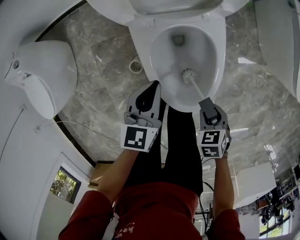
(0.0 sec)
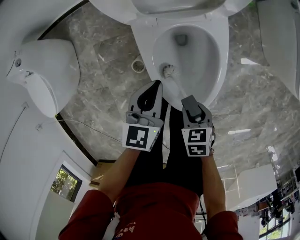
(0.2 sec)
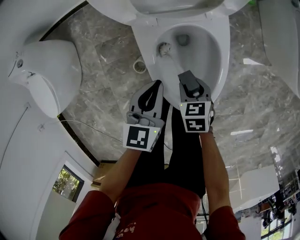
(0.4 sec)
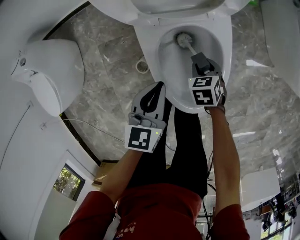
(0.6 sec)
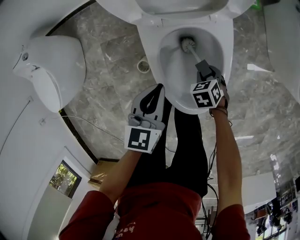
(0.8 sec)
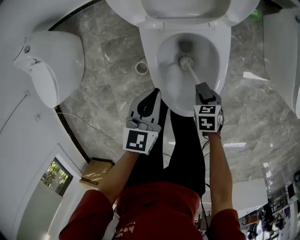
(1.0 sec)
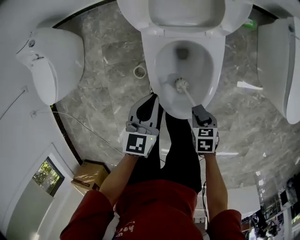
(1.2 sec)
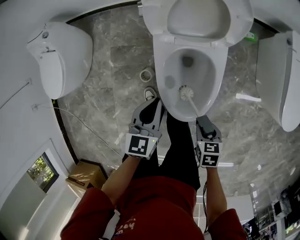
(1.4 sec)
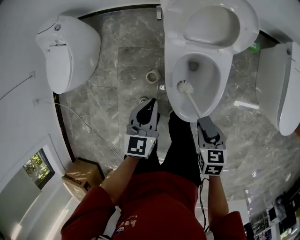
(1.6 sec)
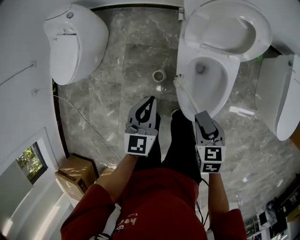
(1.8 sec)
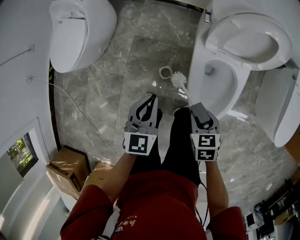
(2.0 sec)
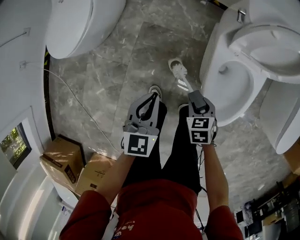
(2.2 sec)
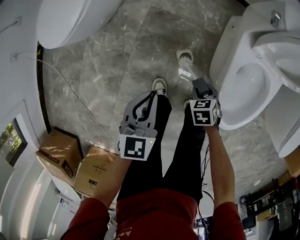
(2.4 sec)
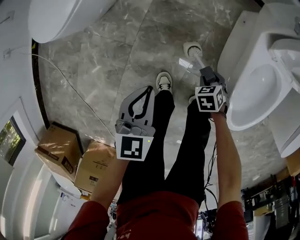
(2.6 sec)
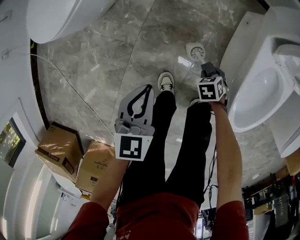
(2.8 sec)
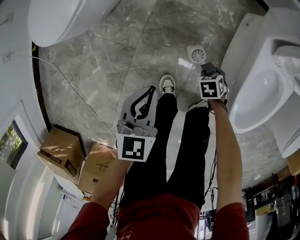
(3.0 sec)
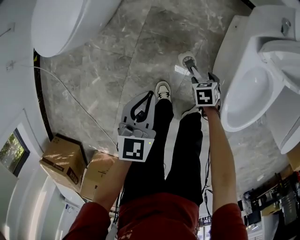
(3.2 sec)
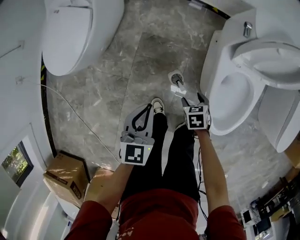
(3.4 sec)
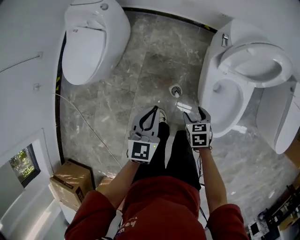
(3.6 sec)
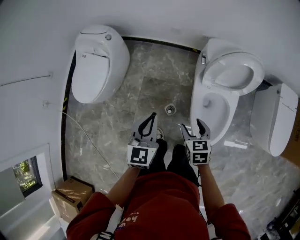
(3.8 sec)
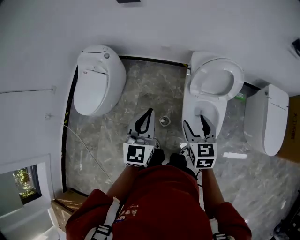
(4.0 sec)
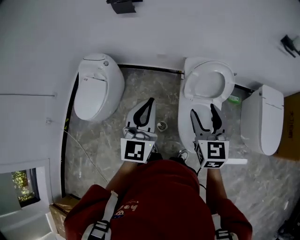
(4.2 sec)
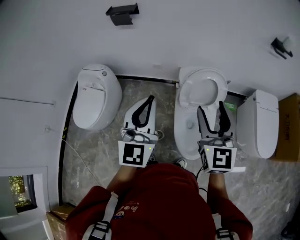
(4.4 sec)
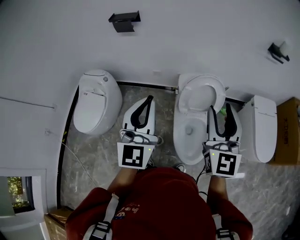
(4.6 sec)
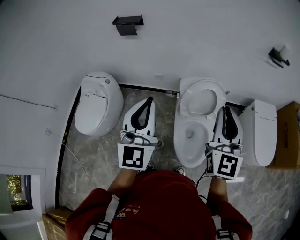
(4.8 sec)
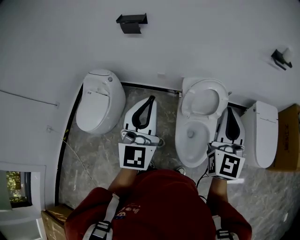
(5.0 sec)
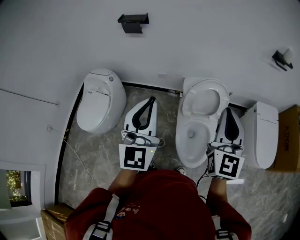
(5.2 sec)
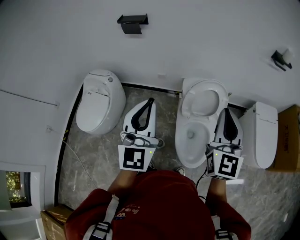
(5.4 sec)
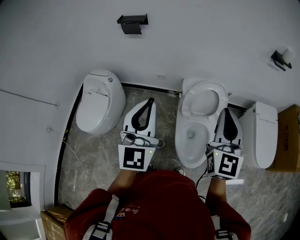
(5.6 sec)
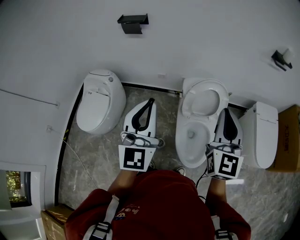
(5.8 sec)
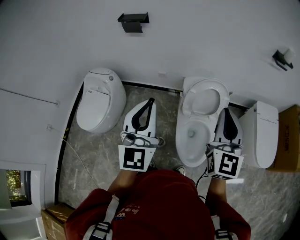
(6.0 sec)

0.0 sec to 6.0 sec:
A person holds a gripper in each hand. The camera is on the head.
0.0 sec to 1.6 sec: Both grippers travel together upward, some 15 cm.
1.6 sec to 3.0 sec: The left gripper shifts by approximately 40 cm; the right gripper moves downward, roughly 35 cm, and rotates roughly 40 degrees.
3.0 sec to 4.4 sec: Both grippers travel together upward, about 70 cm. The left gripper angles its fingers upward, by about 50 degrees. The right gripper tilts its fingers roughly 80 degrees upward, and opens.
4.4 sec to 6.0 sec: The right gripper shifts by about 5 cm, and closes its fingers.

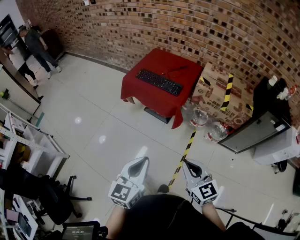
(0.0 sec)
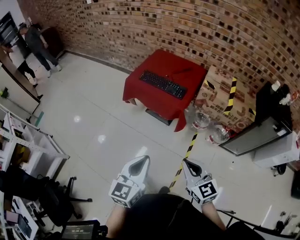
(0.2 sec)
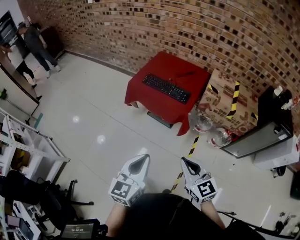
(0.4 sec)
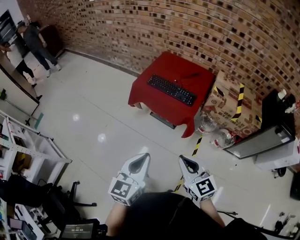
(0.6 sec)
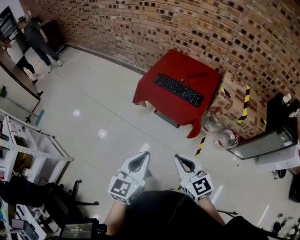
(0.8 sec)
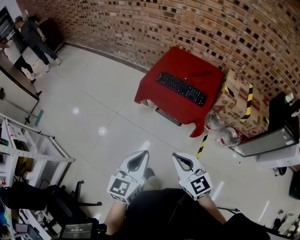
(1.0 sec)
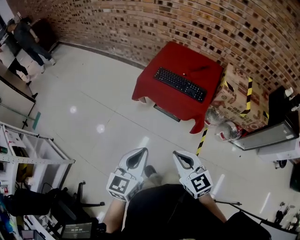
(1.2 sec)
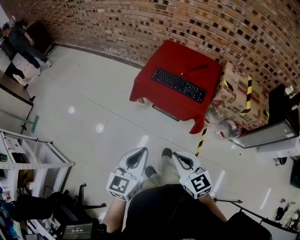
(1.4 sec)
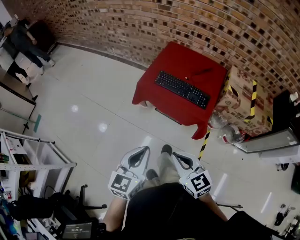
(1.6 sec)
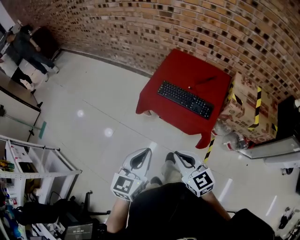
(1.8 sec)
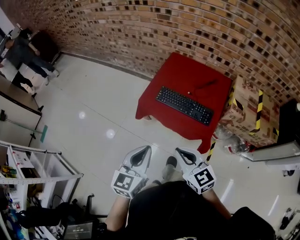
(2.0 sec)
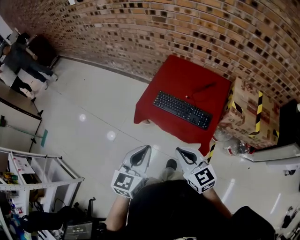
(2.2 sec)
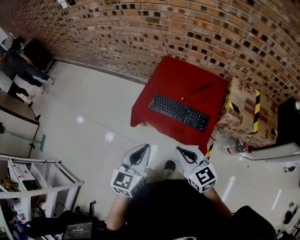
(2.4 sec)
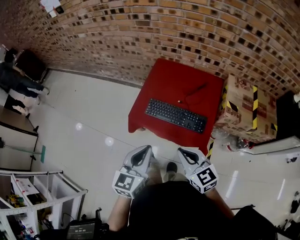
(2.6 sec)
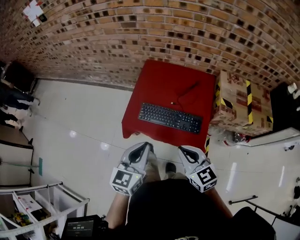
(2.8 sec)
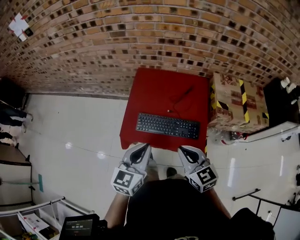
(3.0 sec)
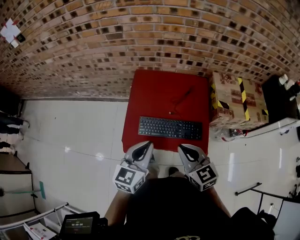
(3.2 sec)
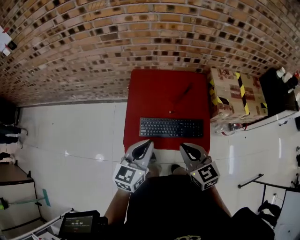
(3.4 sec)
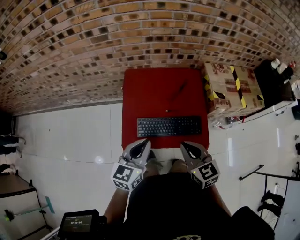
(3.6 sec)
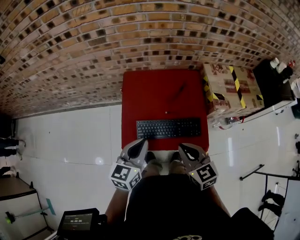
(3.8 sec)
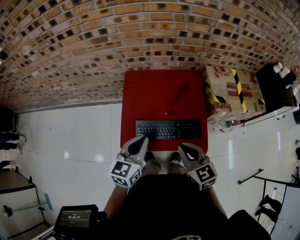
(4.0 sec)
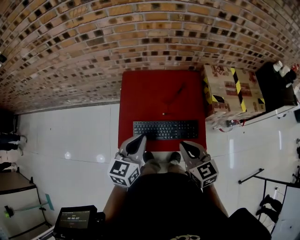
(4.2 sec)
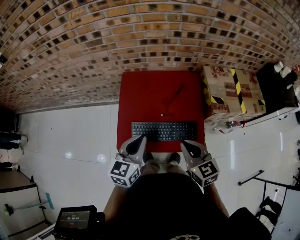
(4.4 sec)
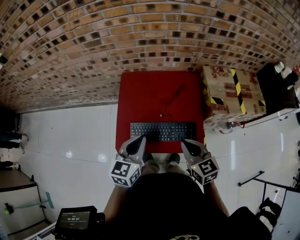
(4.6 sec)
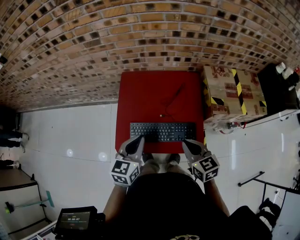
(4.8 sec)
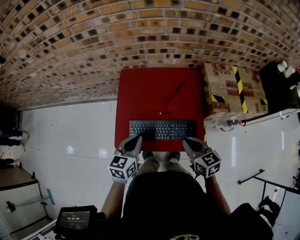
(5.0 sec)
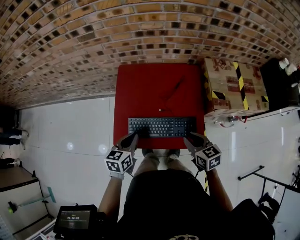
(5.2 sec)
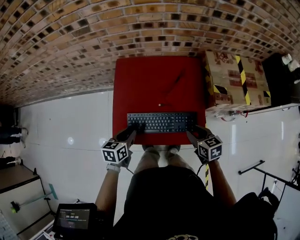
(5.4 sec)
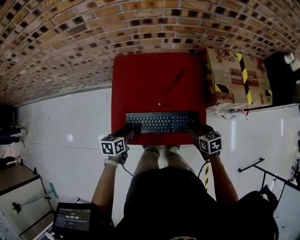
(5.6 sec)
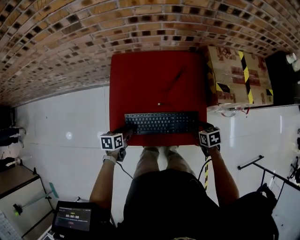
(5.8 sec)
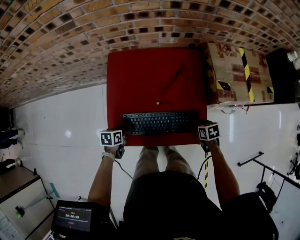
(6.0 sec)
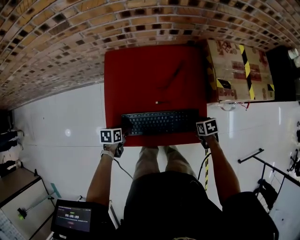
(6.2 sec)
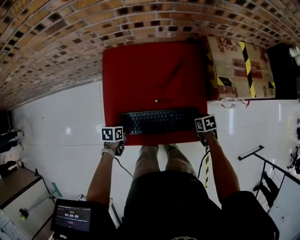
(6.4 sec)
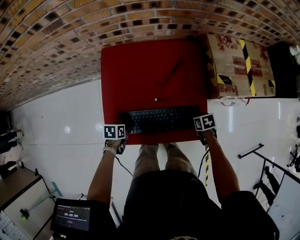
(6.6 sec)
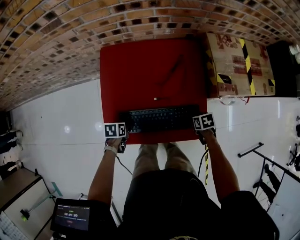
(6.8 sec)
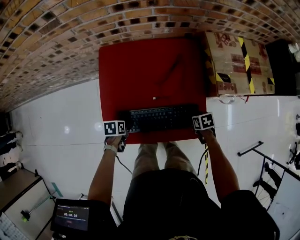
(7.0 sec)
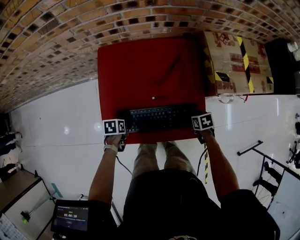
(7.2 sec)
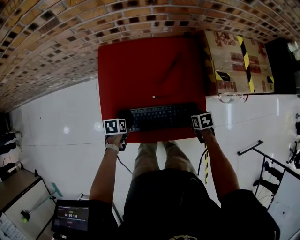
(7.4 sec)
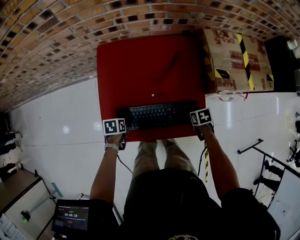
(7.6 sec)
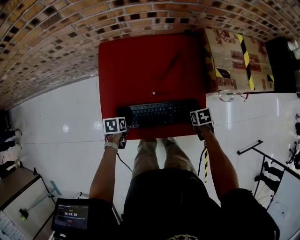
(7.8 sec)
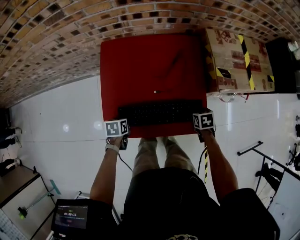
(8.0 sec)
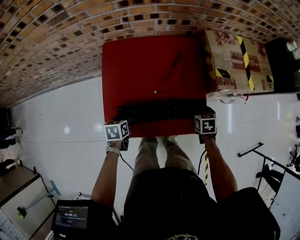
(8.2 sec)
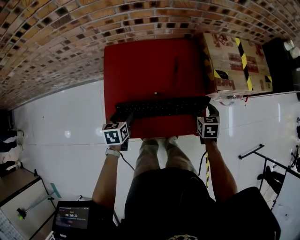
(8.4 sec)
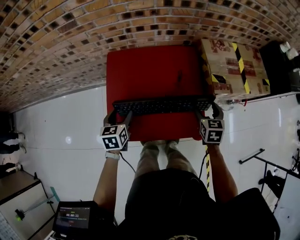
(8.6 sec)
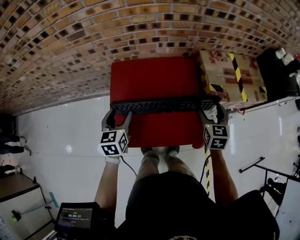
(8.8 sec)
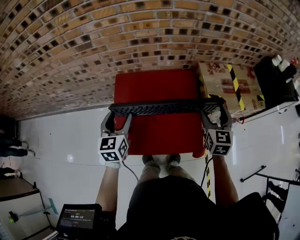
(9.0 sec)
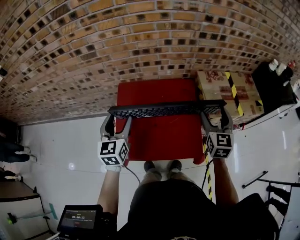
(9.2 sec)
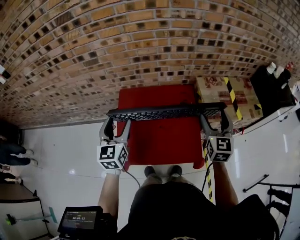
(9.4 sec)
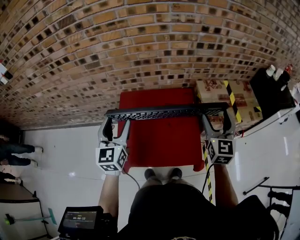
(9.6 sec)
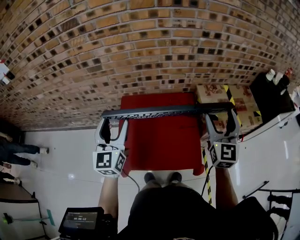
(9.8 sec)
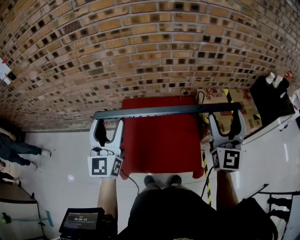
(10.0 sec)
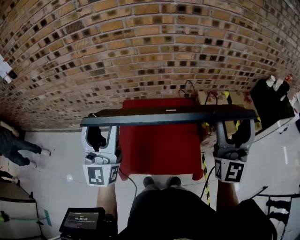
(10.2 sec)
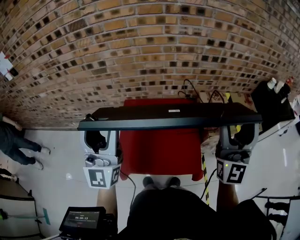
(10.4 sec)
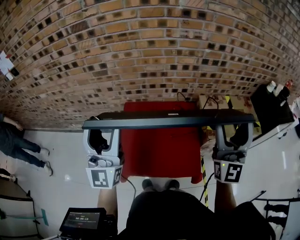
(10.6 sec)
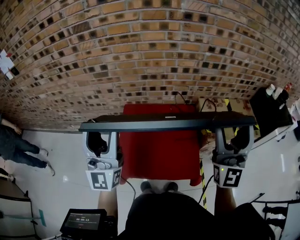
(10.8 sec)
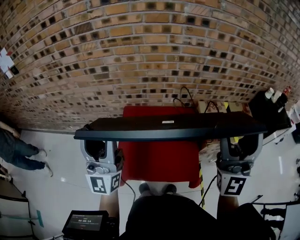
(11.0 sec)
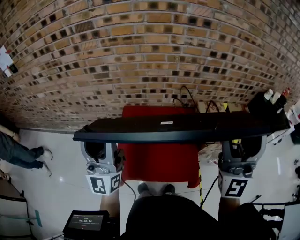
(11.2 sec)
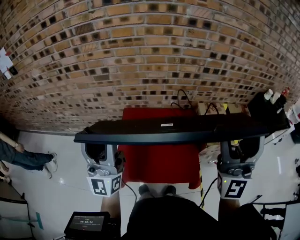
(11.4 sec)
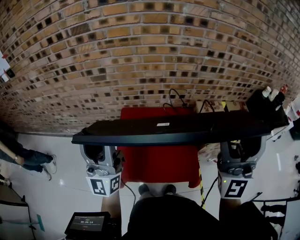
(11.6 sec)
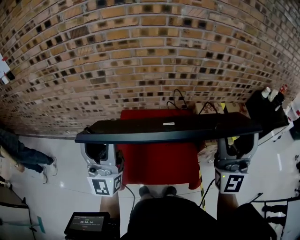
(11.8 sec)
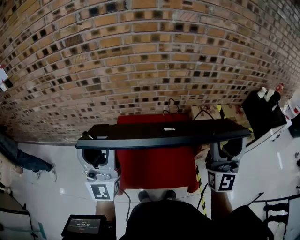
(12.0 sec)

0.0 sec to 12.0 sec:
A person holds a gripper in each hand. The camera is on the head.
0.0 sec to 1.6 sec: Both grippers travel together forward and to the left, approximately 35 cm.
1.6 sec to 3.0 sec: Both grippers travel together forward, roughly 30 cm. The left gripper swivels approximately 20 degrees; the right gripper changes its angle by some 20 degrees.
3.0 sec to 4.4 sec: Both grippers move forward, approximately 10 cm.
4.4 sec to 6.0 sec: The left gripper heads downward, covering roughly 30 cm, angles its fingers downward, by roughly 40 degrees, and opens its fingers; the right gripper moves downward and to the right, some 35 cm, tilts its fingers roughly 40 degrees downward, and opens up.
6.0 sec to 7.6 sec: The grippers make only small movements.
7.6 sec to 9.0 sec: Both grippers travel together upward, roughly 35 cm. The left gripper tilts its fingers approximately 50 degrees upward, while the right gripper points its fingers approximately 50 degrees further upward.
9.0 sec to 10.4 sec: Both grippers travel together upward, about 30 cm. The right gripper tilts its fingers approximately 50 degrees upward. Meanwhile the left gripper points its fingers roughly 50 degrees further upward.
10.4 sec to 12.0 sec: The right gripper reaches some 5 cm upward, then returns.

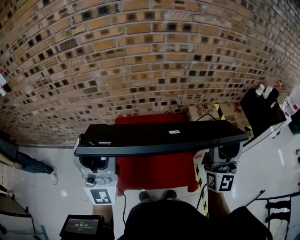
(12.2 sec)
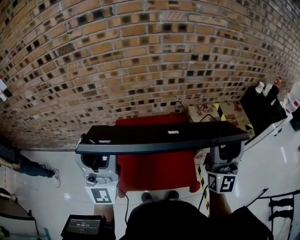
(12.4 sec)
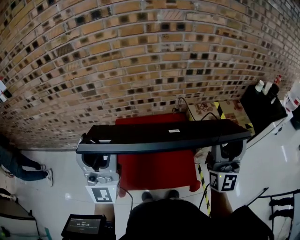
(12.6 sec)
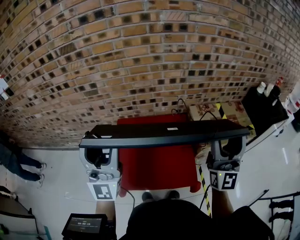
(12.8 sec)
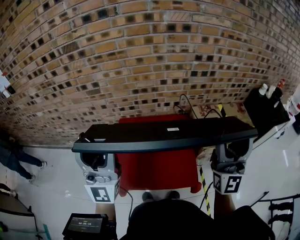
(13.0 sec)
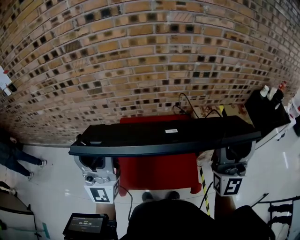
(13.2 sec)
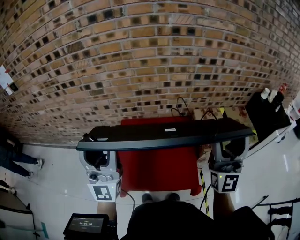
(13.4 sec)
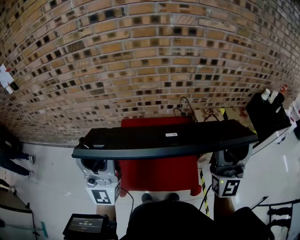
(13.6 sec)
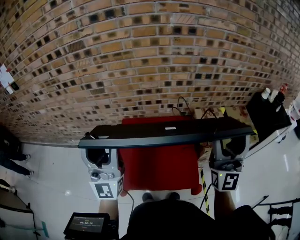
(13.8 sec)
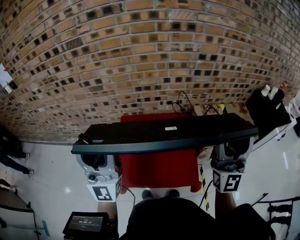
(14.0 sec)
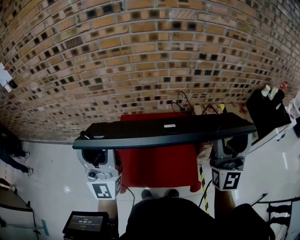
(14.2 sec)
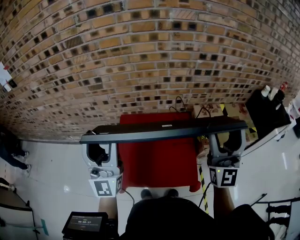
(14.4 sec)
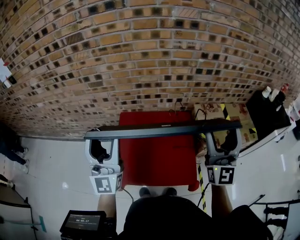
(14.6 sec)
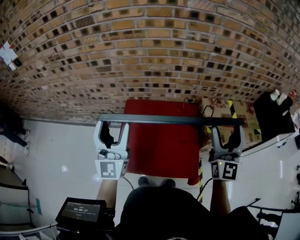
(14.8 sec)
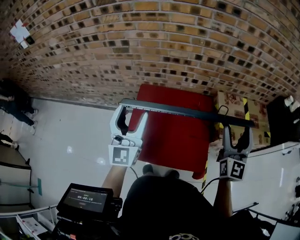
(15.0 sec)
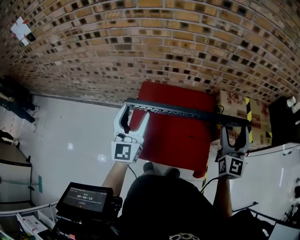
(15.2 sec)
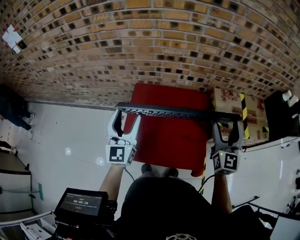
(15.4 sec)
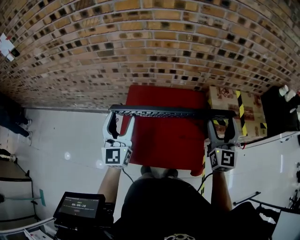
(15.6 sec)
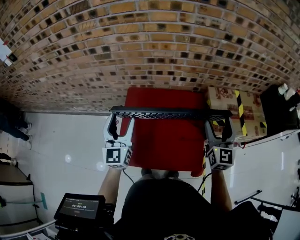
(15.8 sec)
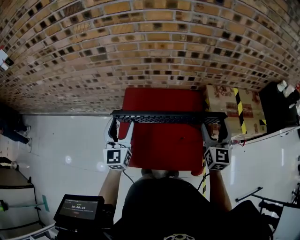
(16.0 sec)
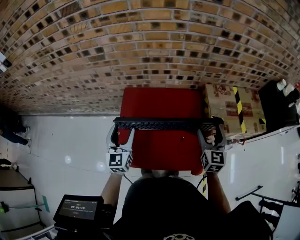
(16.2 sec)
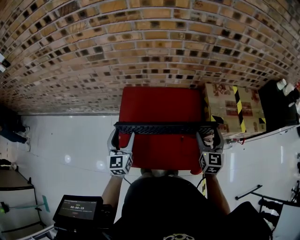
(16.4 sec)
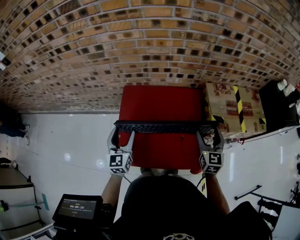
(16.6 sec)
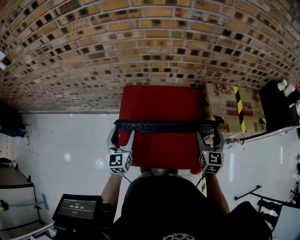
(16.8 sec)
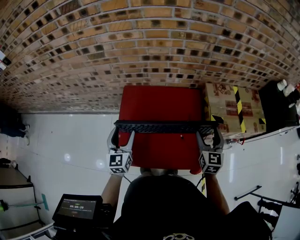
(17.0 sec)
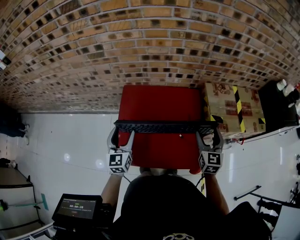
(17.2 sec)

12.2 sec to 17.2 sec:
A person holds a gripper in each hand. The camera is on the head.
12.2 sec to 13.8 sec: The grippers stay close to where they were, moving slightly.
13.8 sec to 15.6 sec: The right gripper goes roughly 20 cm downward and forward, and points its fingers approximately 30 degrees further downward. The left gripper heads downward, covering approximately 20 cm, and angles its fingers downward, by some 30 degrees.
15.6 sec to 17.2 sec: The grippers both shift downward by about 15 cm. The left gripper turns by about 20 degrees.
